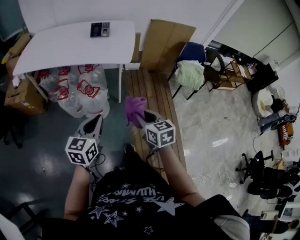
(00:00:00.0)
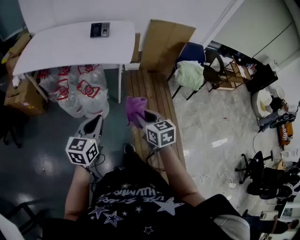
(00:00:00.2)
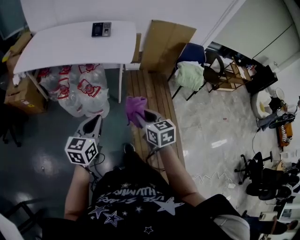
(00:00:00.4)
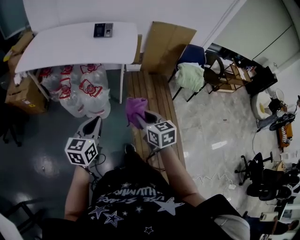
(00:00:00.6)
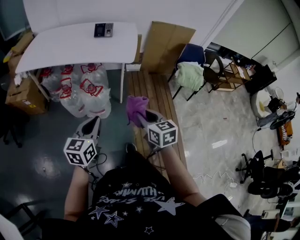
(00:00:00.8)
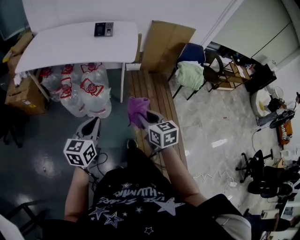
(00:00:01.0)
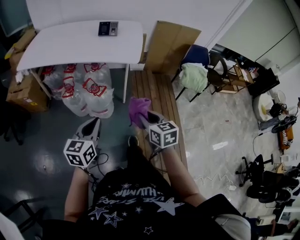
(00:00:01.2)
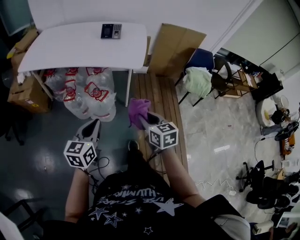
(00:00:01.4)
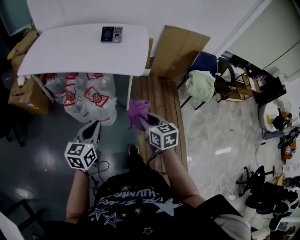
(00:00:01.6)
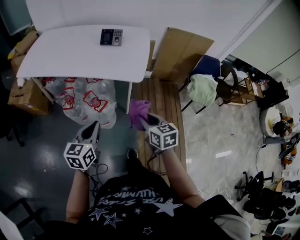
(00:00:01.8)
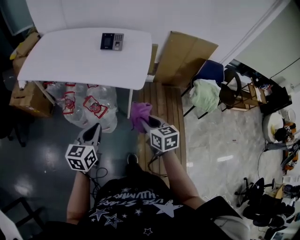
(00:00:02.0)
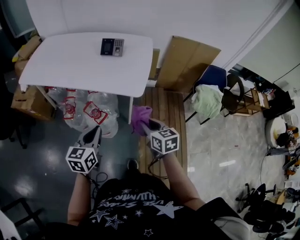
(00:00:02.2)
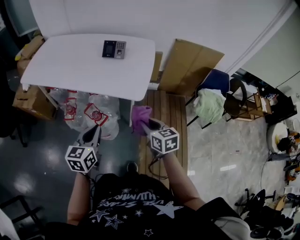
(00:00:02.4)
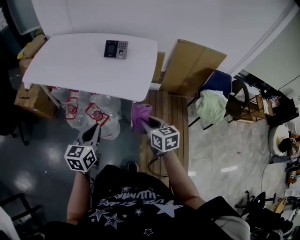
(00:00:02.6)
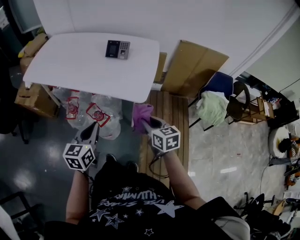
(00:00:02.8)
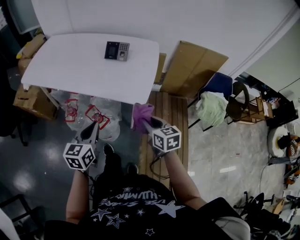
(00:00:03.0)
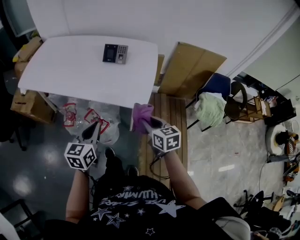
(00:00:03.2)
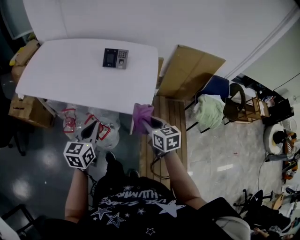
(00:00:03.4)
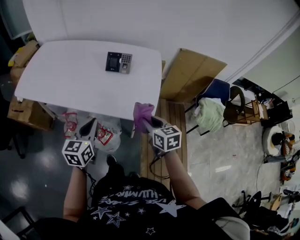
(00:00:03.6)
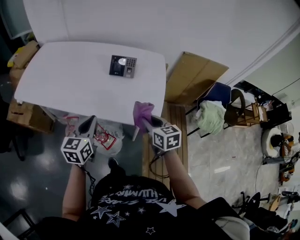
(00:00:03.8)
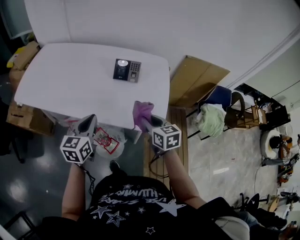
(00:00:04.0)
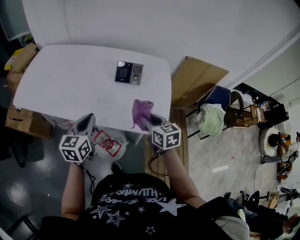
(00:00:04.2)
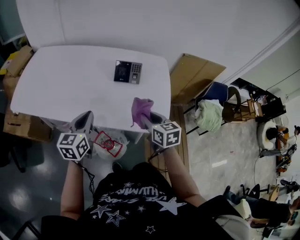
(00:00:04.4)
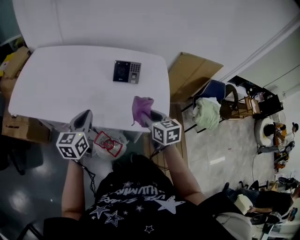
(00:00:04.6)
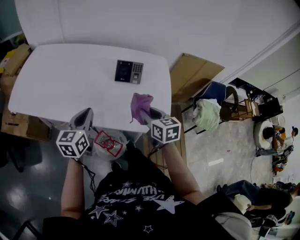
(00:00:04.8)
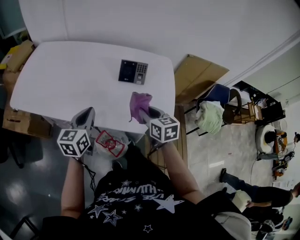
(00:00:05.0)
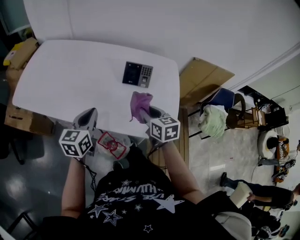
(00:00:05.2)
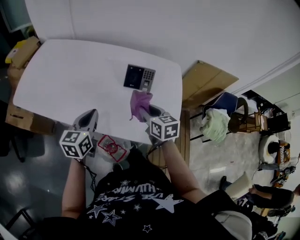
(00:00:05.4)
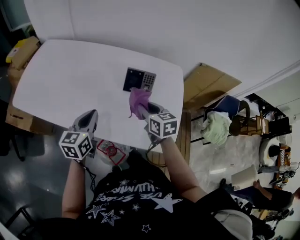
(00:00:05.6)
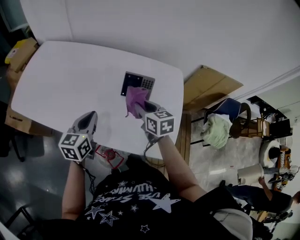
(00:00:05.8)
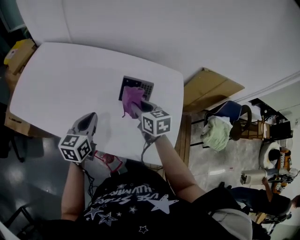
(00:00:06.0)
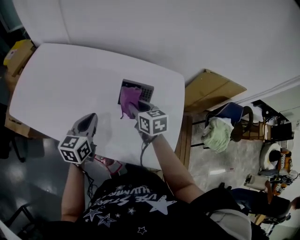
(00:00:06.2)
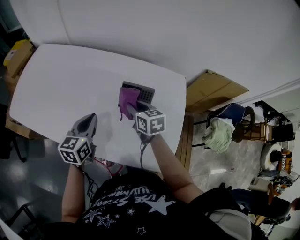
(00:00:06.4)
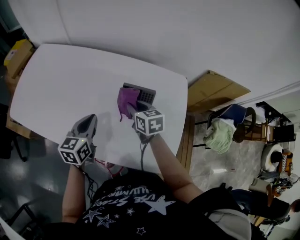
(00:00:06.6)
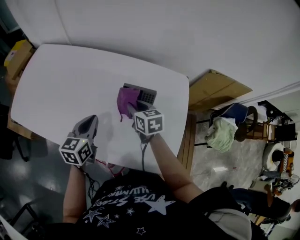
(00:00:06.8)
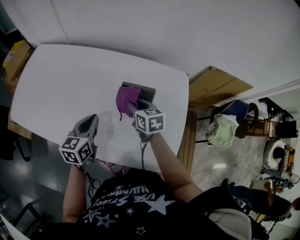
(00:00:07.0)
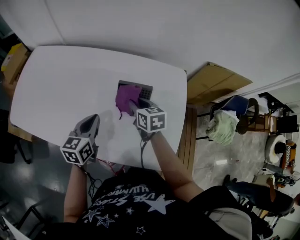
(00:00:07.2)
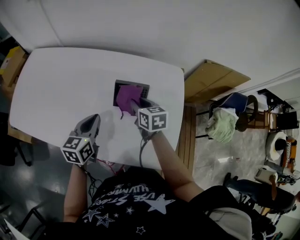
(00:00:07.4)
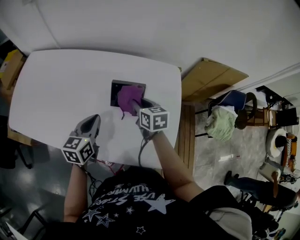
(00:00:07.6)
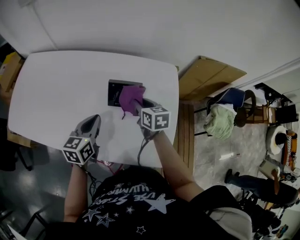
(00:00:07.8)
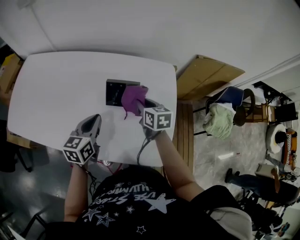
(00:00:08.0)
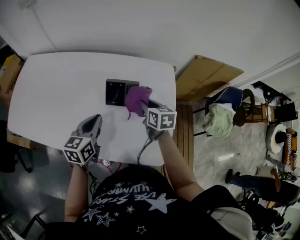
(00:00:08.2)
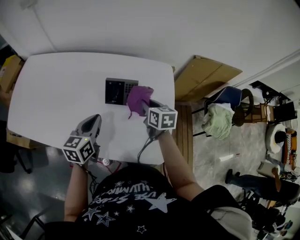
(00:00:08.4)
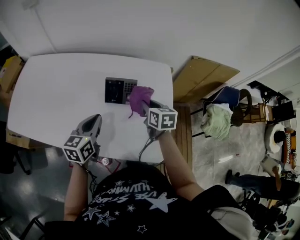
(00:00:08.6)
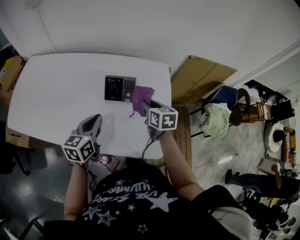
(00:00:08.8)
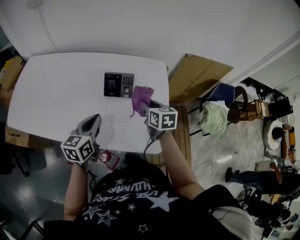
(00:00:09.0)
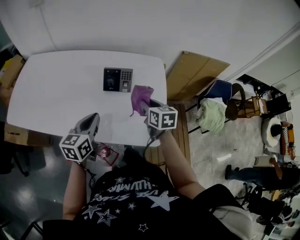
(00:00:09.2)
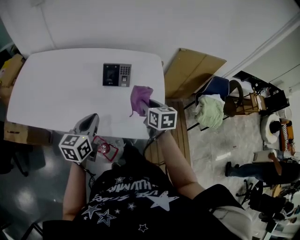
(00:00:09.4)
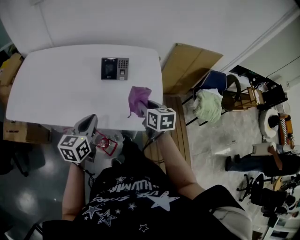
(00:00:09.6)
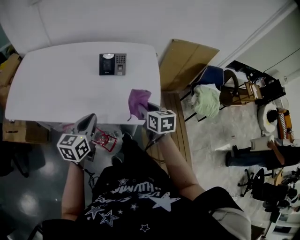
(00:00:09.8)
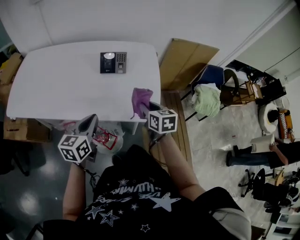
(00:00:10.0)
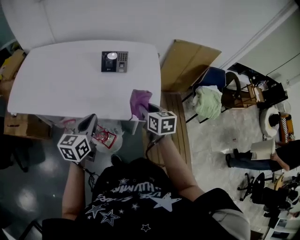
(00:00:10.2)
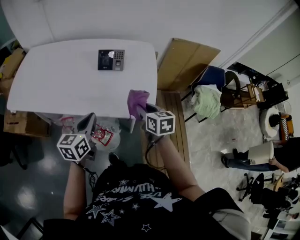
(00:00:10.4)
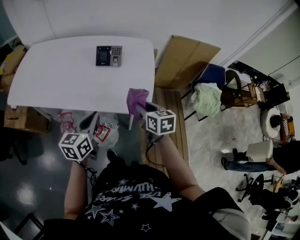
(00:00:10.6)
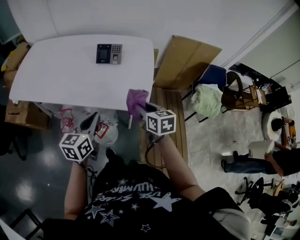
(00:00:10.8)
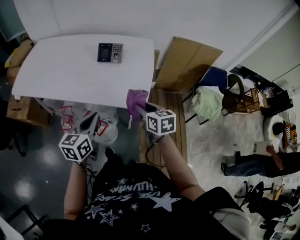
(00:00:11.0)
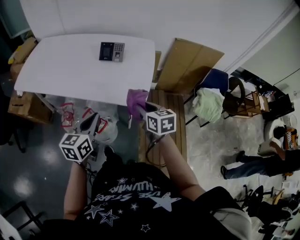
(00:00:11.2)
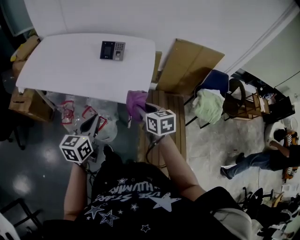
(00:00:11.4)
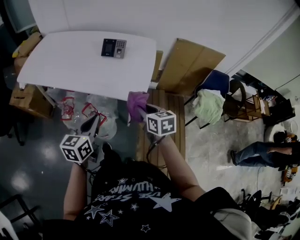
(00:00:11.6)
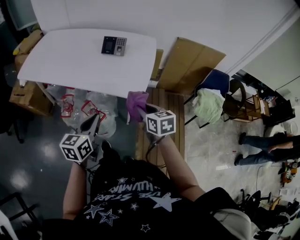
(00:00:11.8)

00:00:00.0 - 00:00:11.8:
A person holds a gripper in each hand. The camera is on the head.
00:00:00.0 - 00:00:01.4: The right gripper changes place by some 5 cm; the left gripper heads to the left, covering roughly 5 cm.
00:00:01.4 - 00:00:03.0: Both grippers travel together forward, approximately 25 cm.
00:00:03.0 - 00:00:04.4: The grippers both shift forward and to the left by roughly 30 cm.
00:00:04.4 - 00:00:06.0: The left gripper is displaced forward by approximately 15 cm; the right gripper travels forward by about 20 cm.
00:00:06.0 - 00:00:07.4: The left gripper ends up approximately 5 cm from where it was. The right gripper heads forward, covering roughly 5 cm.
00:00:07.4 - 00:00:08.8: The left gripper moves backward, some 5 cm. The right gripper goes some 10 cm to the right and backward.
00:00:08.8 - 00:00:10.4: Both grippers travel together backward, approximately 25 cm.
00:00:10.4 - 00:00:11.8: Both grippers travel together backward and to the right, about 15 cm.

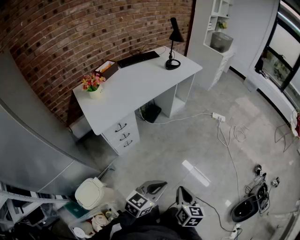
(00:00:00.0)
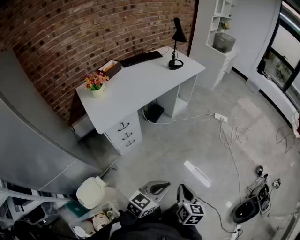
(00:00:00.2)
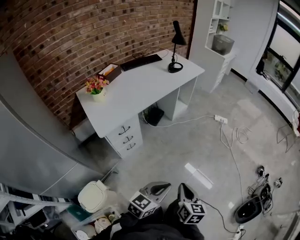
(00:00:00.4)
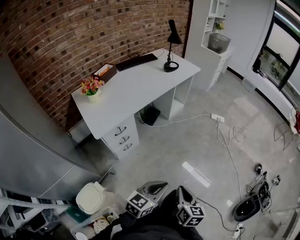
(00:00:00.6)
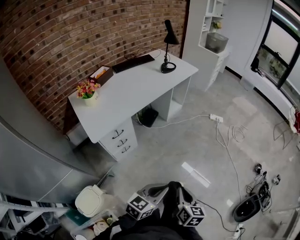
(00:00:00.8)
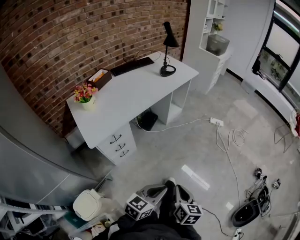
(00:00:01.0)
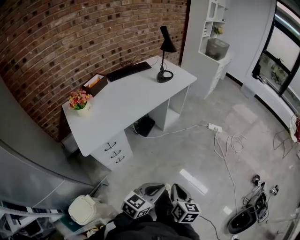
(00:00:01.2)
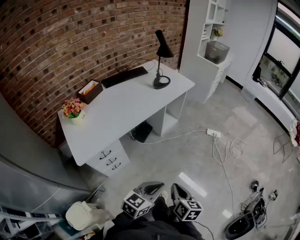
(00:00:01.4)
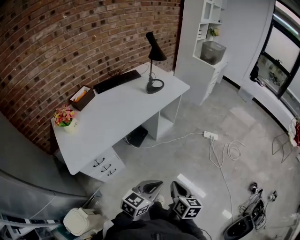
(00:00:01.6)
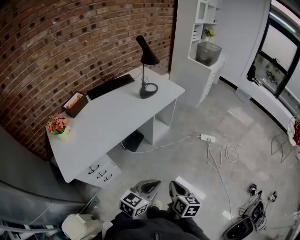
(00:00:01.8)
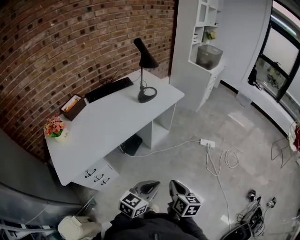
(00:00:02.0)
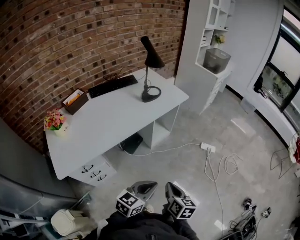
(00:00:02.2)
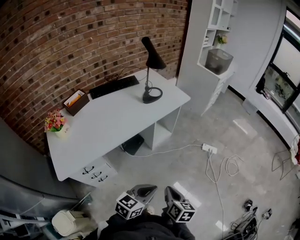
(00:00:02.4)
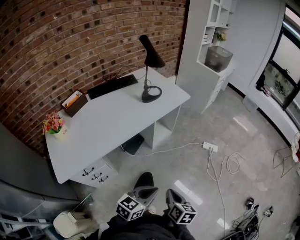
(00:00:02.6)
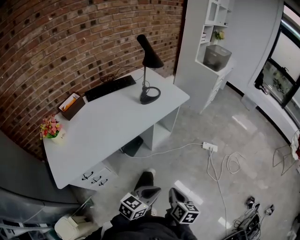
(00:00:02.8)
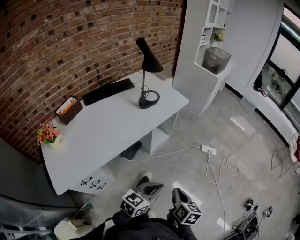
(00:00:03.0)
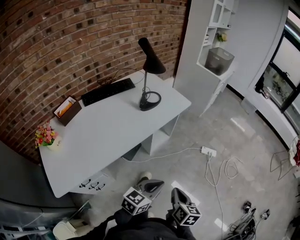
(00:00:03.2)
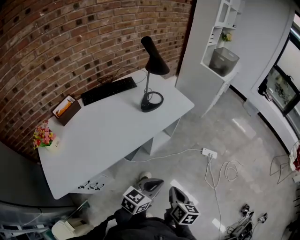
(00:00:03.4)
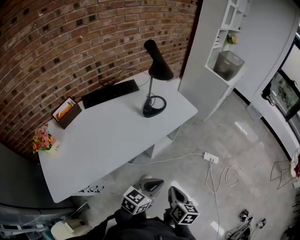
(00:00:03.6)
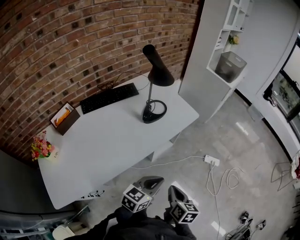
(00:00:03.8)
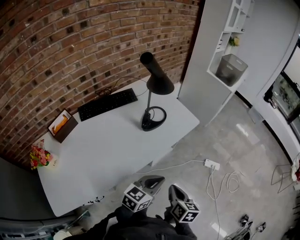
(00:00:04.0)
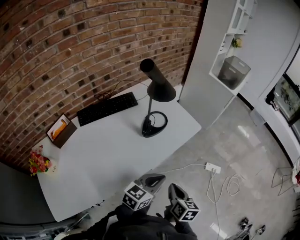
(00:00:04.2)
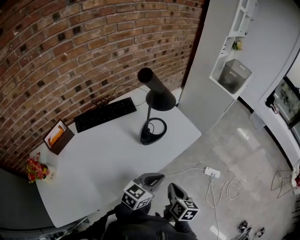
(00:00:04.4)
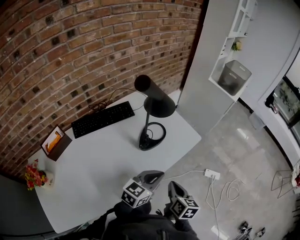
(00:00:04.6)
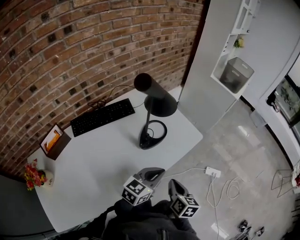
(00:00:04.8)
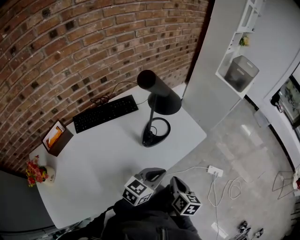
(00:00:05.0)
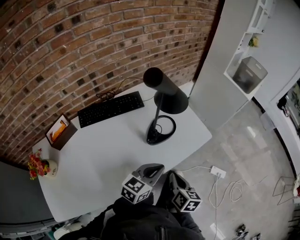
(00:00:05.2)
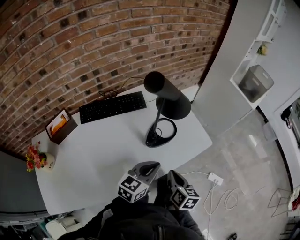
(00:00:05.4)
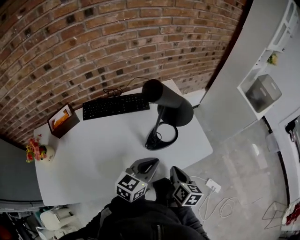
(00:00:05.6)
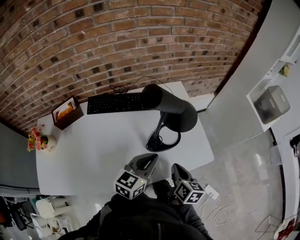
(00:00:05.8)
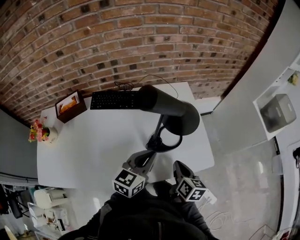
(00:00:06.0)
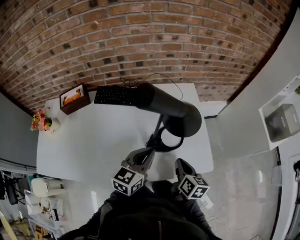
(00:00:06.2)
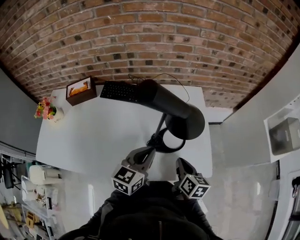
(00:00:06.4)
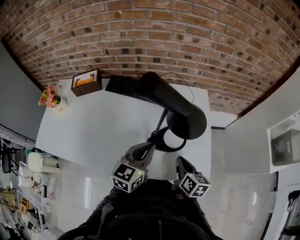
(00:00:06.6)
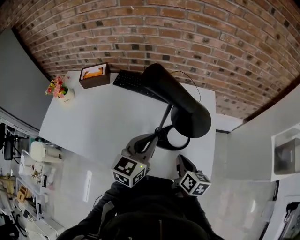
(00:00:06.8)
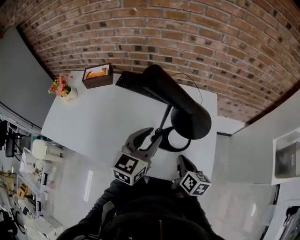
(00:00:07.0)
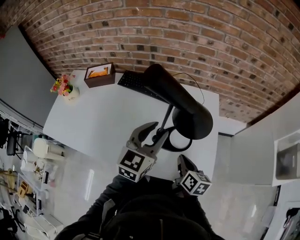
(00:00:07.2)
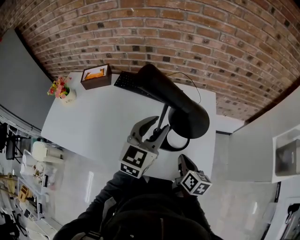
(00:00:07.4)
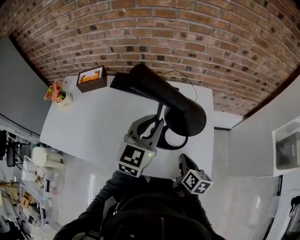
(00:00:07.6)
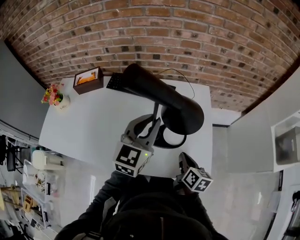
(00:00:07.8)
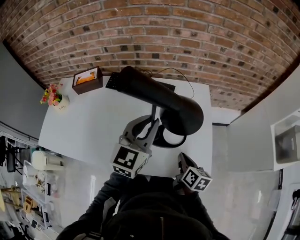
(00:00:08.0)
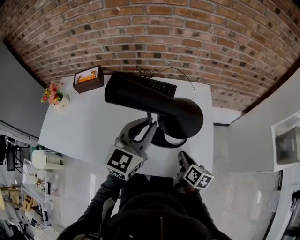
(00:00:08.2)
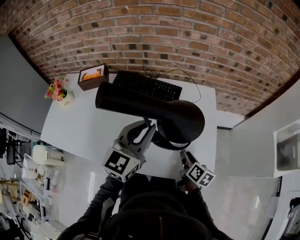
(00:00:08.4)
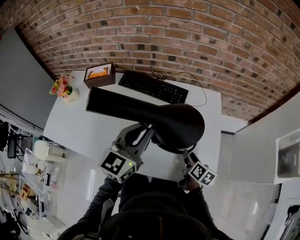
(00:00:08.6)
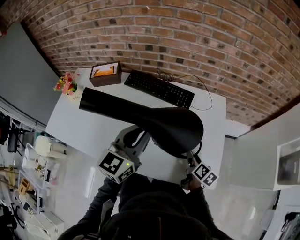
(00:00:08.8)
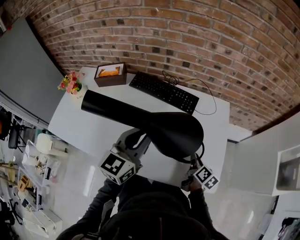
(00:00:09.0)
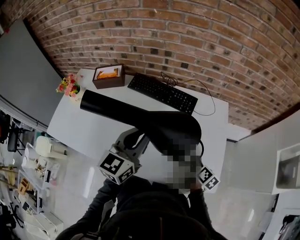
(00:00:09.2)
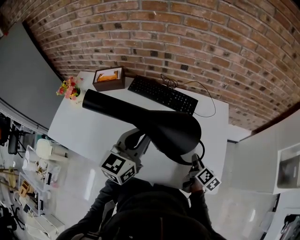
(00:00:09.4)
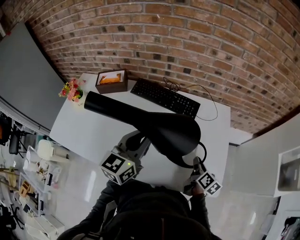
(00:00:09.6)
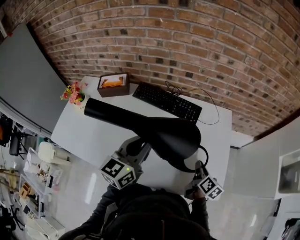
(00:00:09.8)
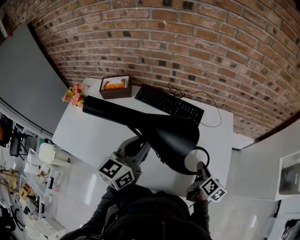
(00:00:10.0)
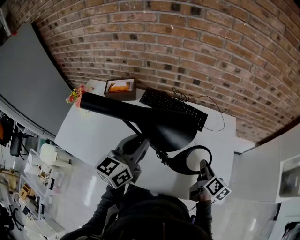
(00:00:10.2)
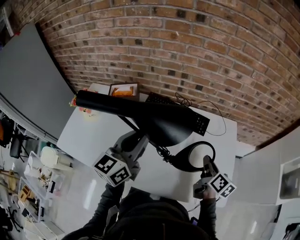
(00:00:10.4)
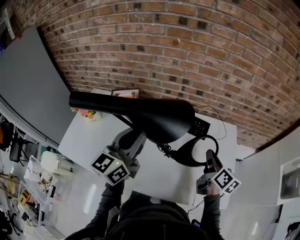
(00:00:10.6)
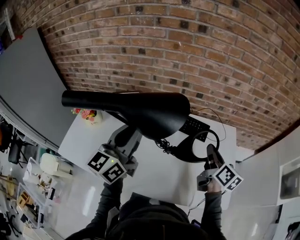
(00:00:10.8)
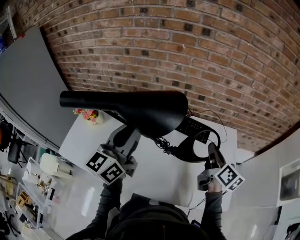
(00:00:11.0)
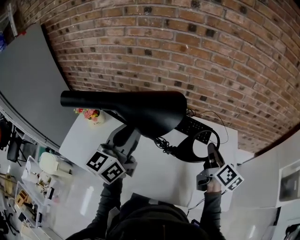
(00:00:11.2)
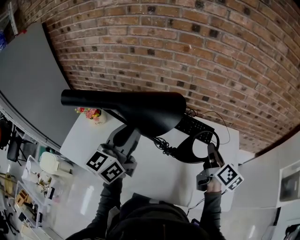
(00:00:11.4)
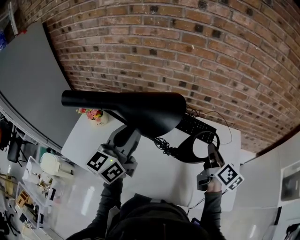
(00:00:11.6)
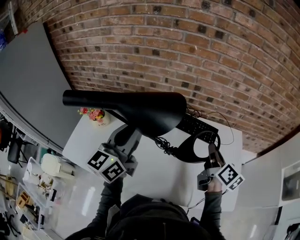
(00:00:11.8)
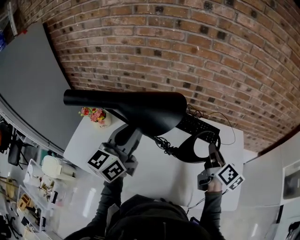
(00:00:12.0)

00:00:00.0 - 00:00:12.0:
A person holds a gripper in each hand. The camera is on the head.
00:00:00.0 - 00:00:01.6: The grippers both shift forward by some 30 cm.
00:00:01.6 - 00:00:03.0: Both grippers move forward, some 15 cm.
00:00:03.0 - 00:00:04.4: The left gripper moves forward, roughly 30 cm, while the right gripper shifts some 35 cm forward and to the left.
00:00:04.4 - 00:00:06.0: The right gripper moves roughly 25 cm, and changes its angle by some 30 degrees. Meanwhile the left gripper ends up roughly 20 cm from where it was, and changes its angle by approximately 40 degrees.
00:00:06.0 - 00:00:07.6: The right gripper shifts by roughly 5 cm. The left gripper travels upward and forward by roughly 10 cm, changes its angle by about 30 degrees, and opens, then closes once more.
00:00:07.6 - 00:00:09.0: The left gripper heads to the left, covering some 10 cm; the right gripper travels forward by about 5 cm, and opens and closes again.
00:00:09.0 - 00:00:10.4: The right gripper goes approximately 15 cm upward and to the left, while the left gripper shifts approximately 15 cm to the left and upward.
00:00:10.4 - 00:00:12.0: The right gripper is displaced to the left and upward by some 15 cm. The left gripper travels to the left by about 15 cm.
